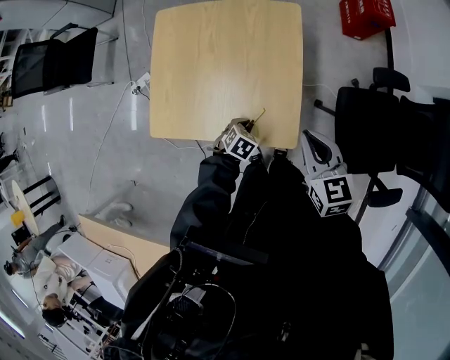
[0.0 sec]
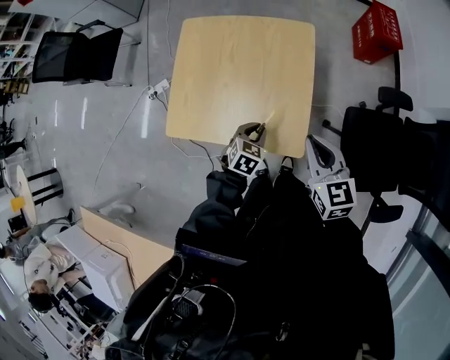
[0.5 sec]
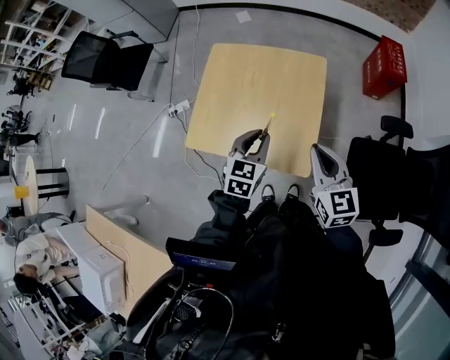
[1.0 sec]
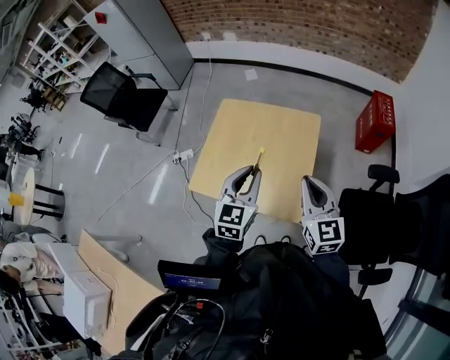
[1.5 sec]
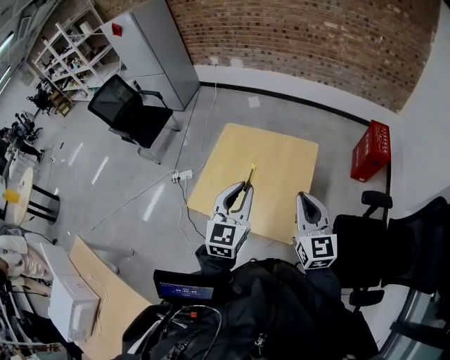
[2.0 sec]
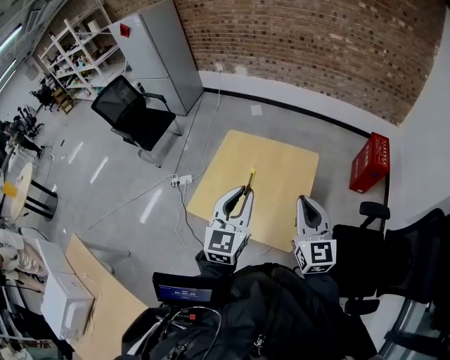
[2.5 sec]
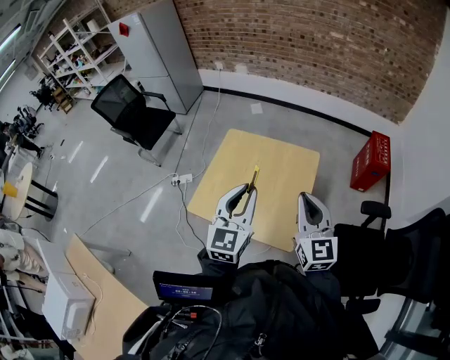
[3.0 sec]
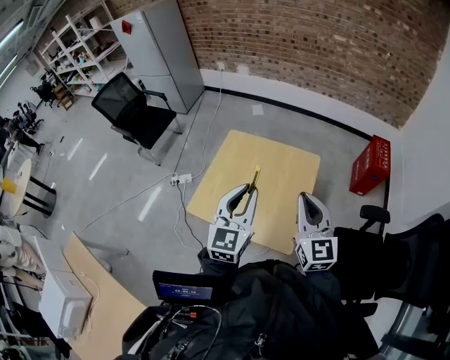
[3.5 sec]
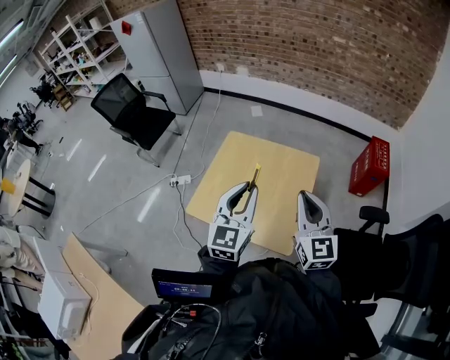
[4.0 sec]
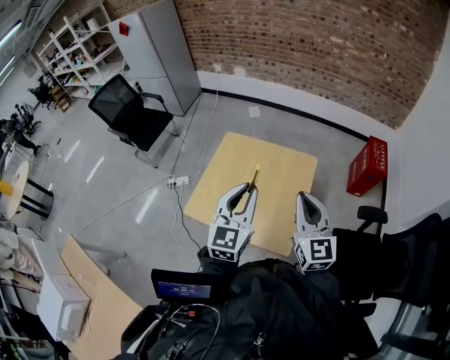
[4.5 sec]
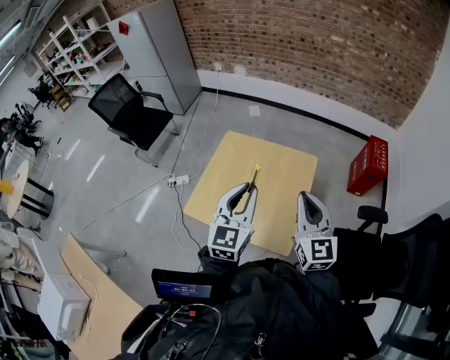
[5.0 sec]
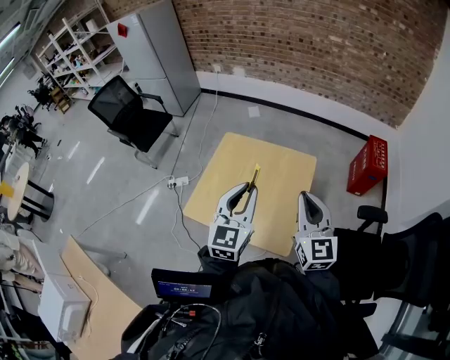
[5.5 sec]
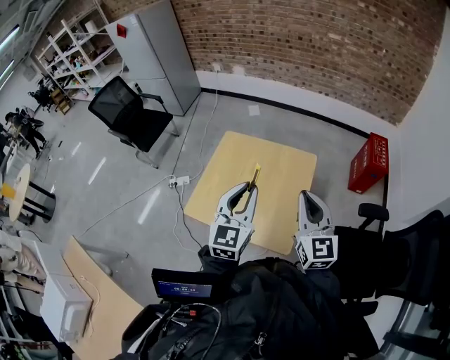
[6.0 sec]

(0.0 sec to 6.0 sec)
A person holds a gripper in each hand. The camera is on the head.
0.0 sec - 2.0 sec: The right gripper goes about 20 cm upward, and turns by about 30 degrees; the left gripper heads upward, covering about 50 cm, and angles its fingers upward, by roughly 60 degrees.
2.0 sec - 6.0 sec: The grippers move only a little.

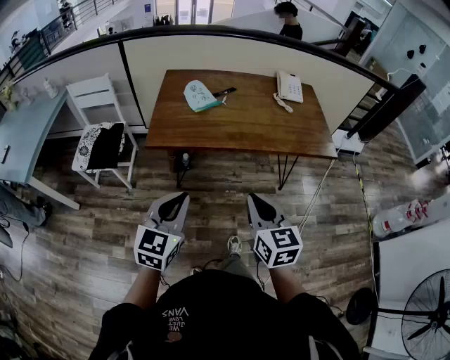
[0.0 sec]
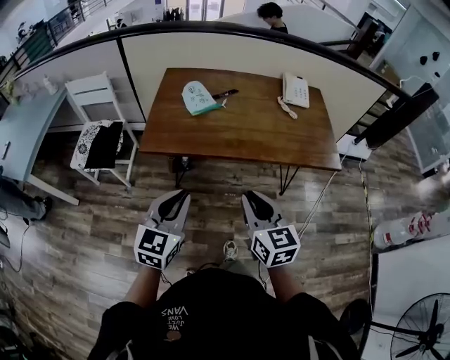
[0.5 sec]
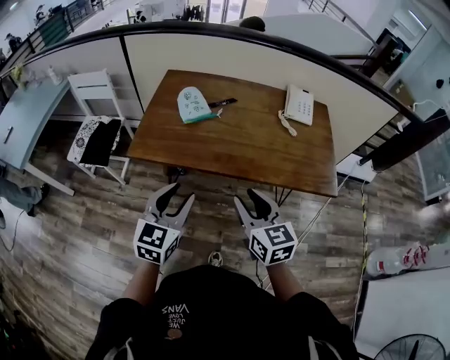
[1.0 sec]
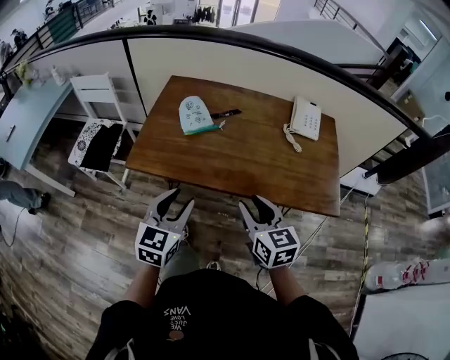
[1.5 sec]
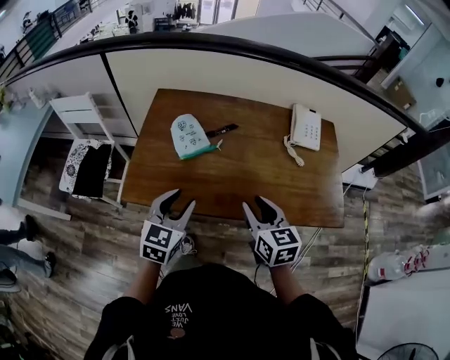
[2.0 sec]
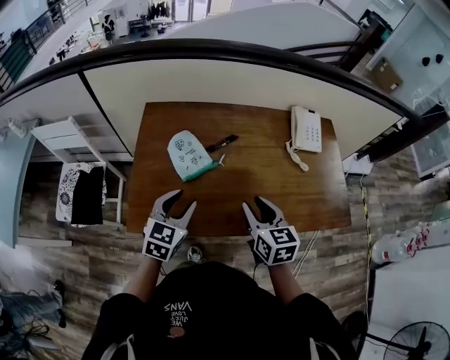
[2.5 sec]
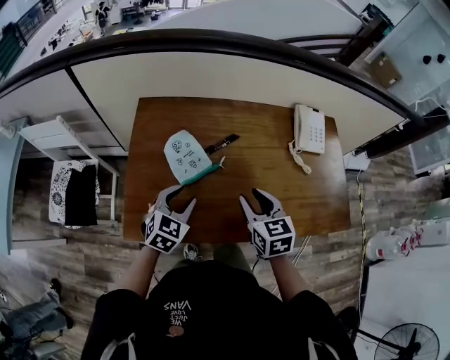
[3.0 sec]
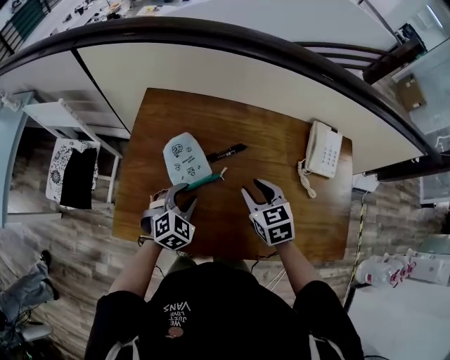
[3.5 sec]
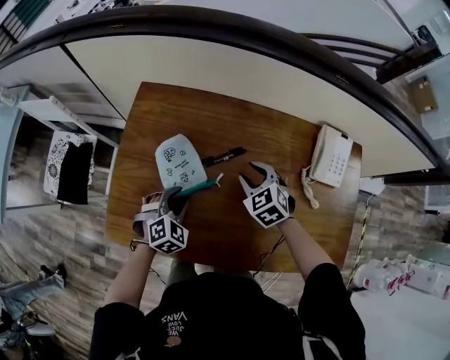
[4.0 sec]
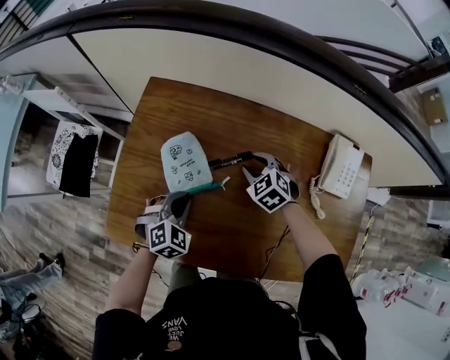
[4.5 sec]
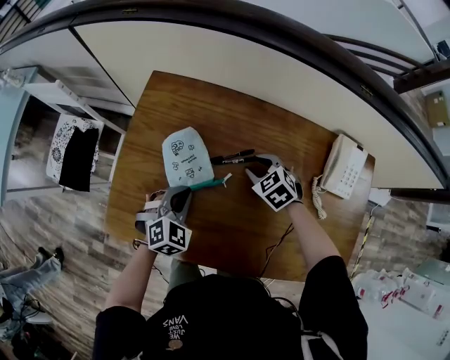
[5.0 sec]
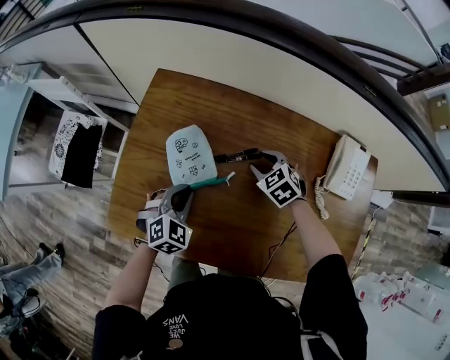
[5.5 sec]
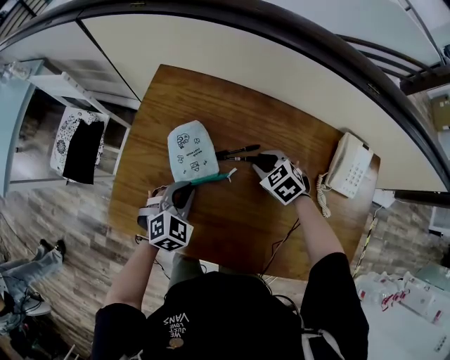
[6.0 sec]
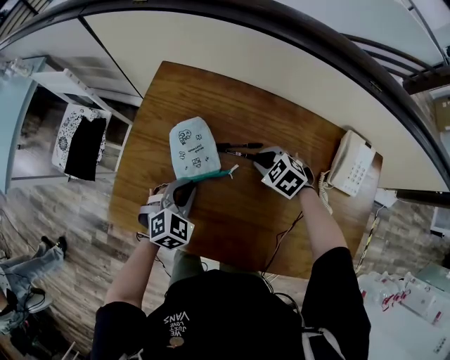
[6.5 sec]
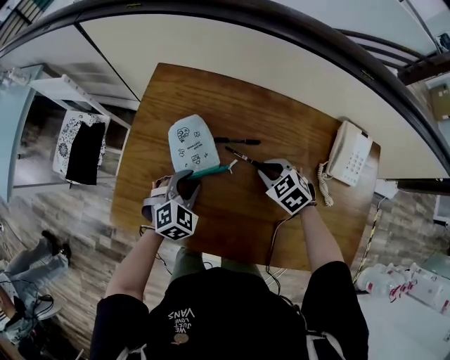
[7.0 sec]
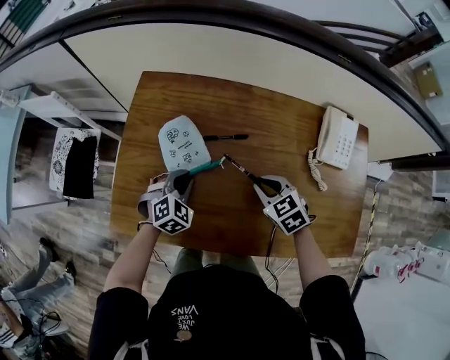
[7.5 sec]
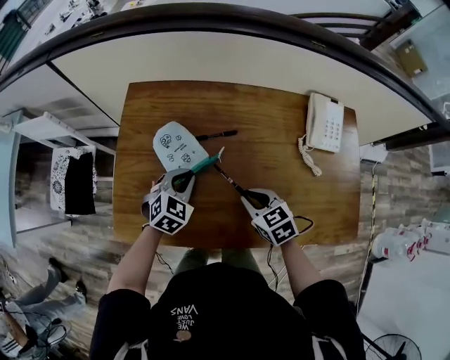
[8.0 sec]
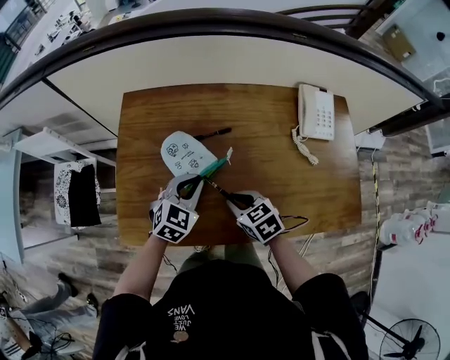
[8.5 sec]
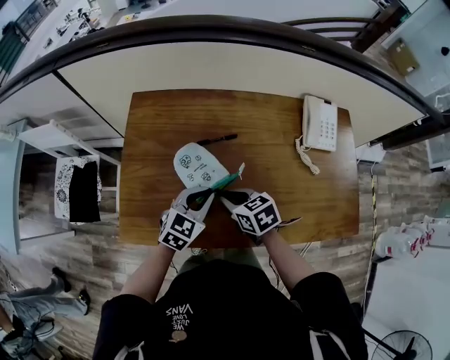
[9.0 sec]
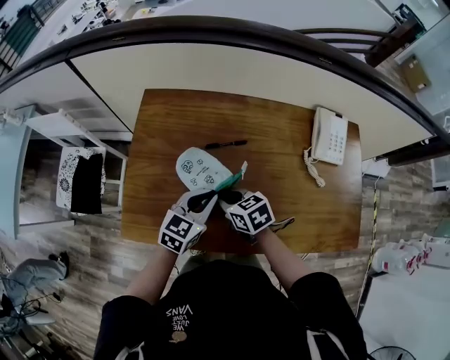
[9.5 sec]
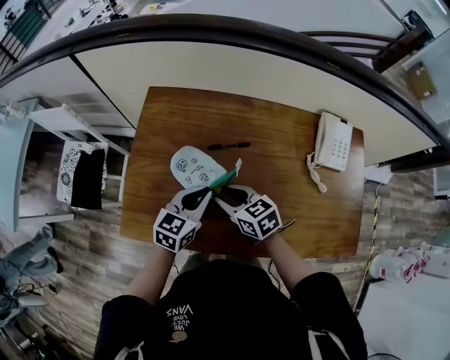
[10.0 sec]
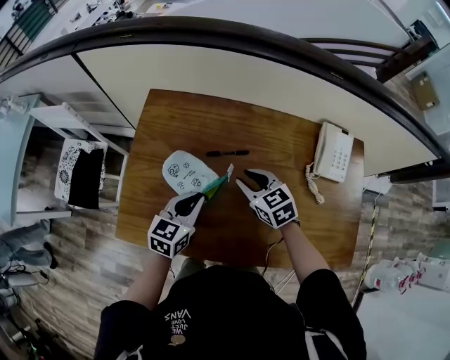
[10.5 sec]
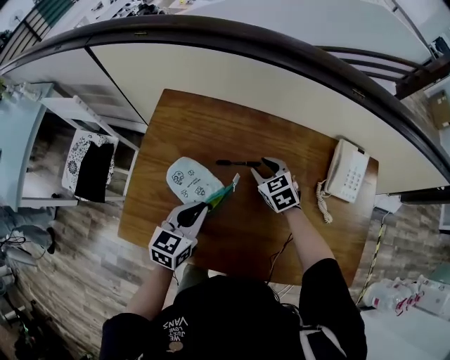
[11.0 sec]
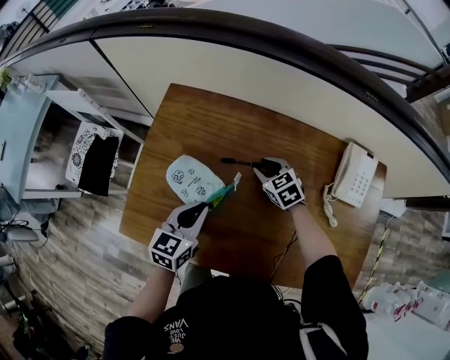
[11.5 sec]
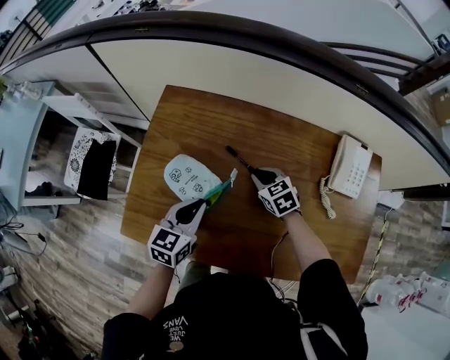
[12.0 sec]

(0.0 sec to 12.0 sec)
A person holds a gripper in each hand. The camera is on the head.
0.0 sec - 2.0 sec: Both grippers travel together forward, roughly 30 cm. The left gripper opens its fingers. The right gripper opens its fingers.
2.0 sec - 4.0 sec: The two grippers go about 30 cm forward and downward. The left gripper rotates about 40 degrees, while the right gripper turns by approximately 50 degrees.
4.0 sec - 6.0 sec: The right gripper goes about 5 cm downward; the left gripper closes up.
6.0 sec - 8.0 sec: The left gripper opens and closes again. The right gripper moves backward, roughly 15 cm, and turns by some 30 degrees.
8.0 sec - 10.0 sec: The left gripper goes roughly 5 cm upward, and changes its angle by roughly 40 degrees, while the right gripper moves to the left, about 10 cm.
10.0 sec - 12.0 sec: The right gripper is displaced forward, to the right and downward by some 15 cm, and turns by approximately 20 degrees.

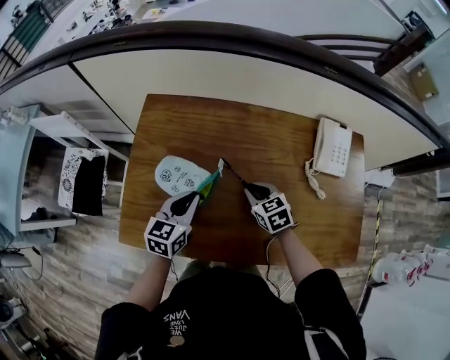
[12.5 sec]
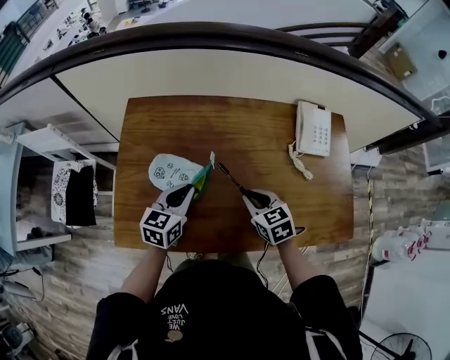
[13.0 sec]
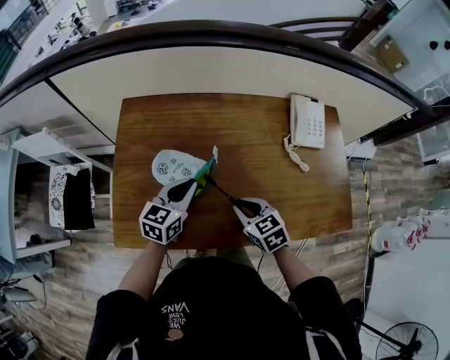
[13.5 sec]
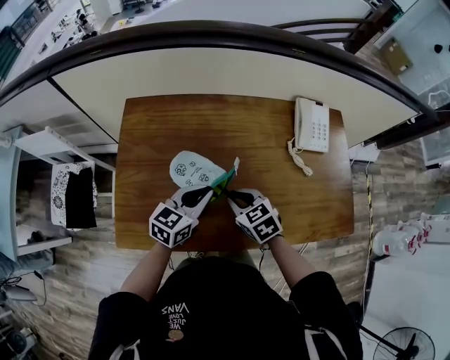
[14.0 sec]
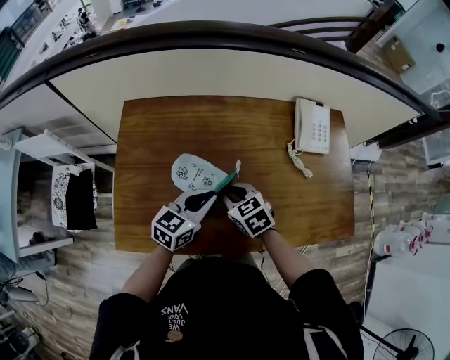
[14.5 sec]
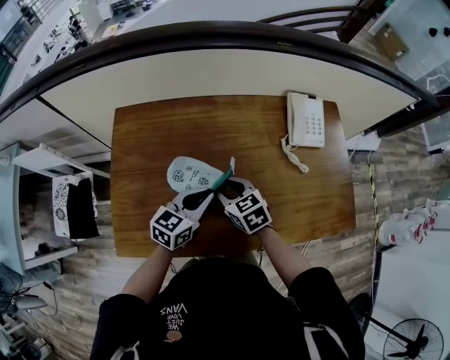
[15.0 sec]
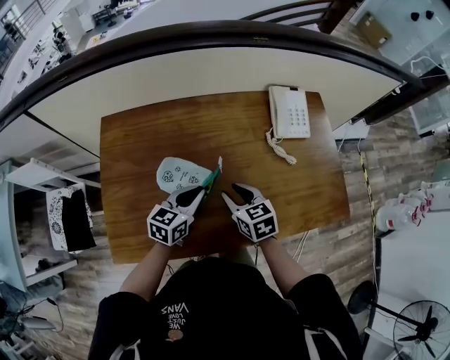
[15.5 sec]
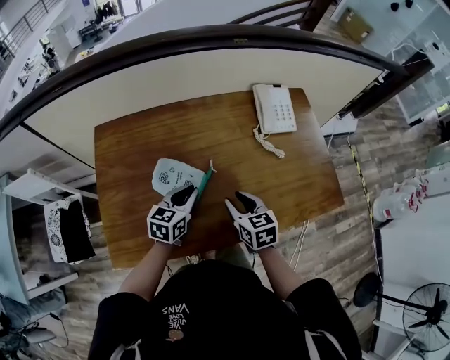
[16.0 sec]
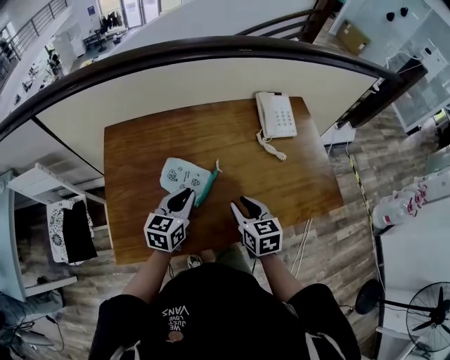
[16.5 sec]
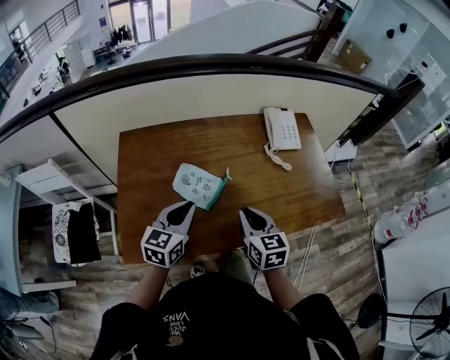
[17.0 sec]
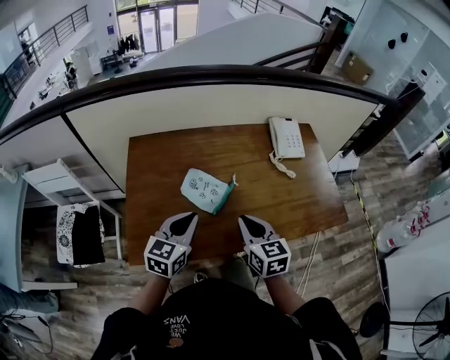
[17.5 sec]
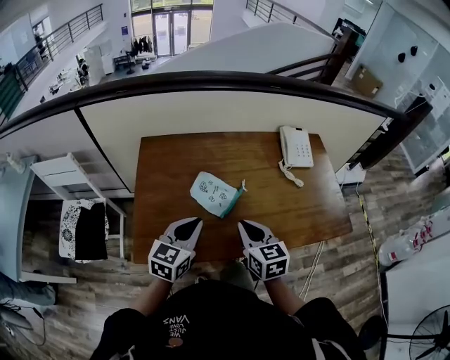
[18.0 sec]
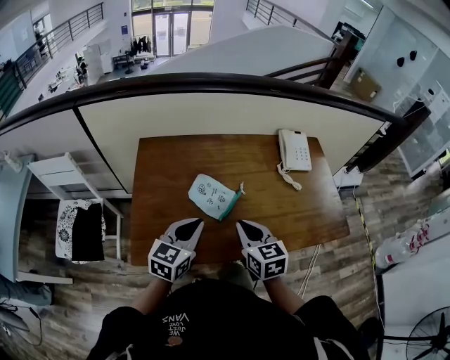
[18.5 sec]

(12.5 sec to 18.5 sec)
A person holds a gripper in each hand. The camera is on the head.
12.5 sec - 14.5 sec: The left gripper heads to the right, covering some 10 cm, and turns by roughly 20 degrees.
14.5 sec - 16.5 sec: The right gripper moves to the right and backward, about 10 cm, and turns by approximately 40 degrees.
16.5 sec - 18.5 sec: The left gripper heads backward, upward and to the left, covering some 10 cm, while the right gripper is displaced to the left, upward and backward by roughly 10 cm, and closes.

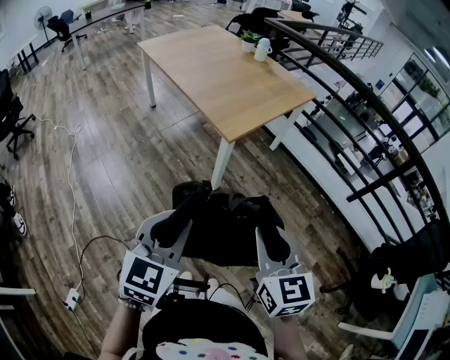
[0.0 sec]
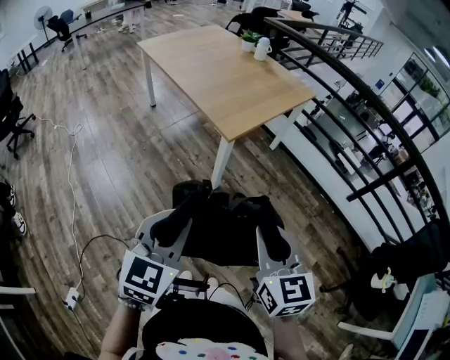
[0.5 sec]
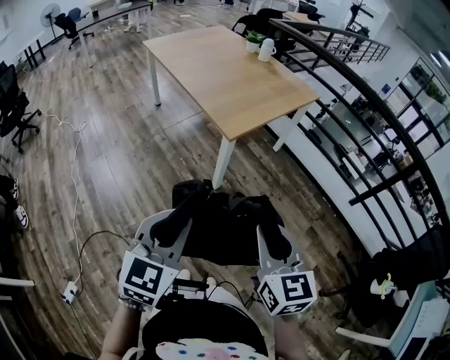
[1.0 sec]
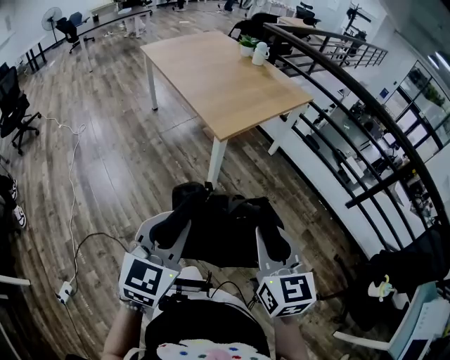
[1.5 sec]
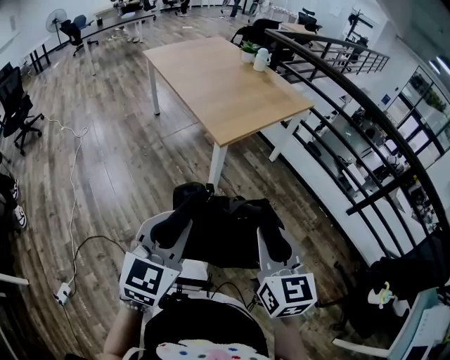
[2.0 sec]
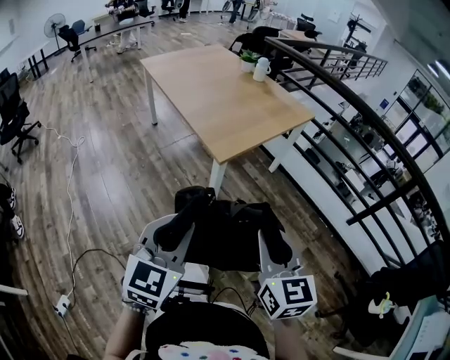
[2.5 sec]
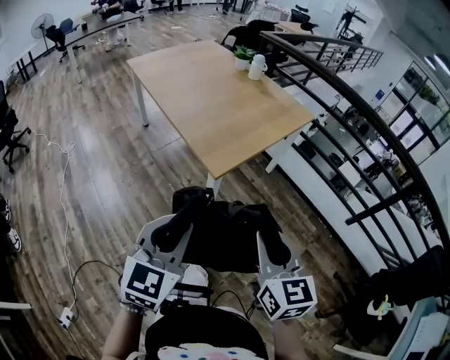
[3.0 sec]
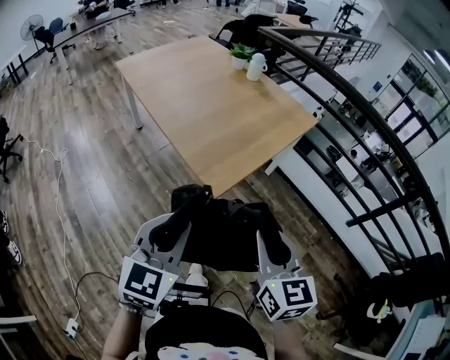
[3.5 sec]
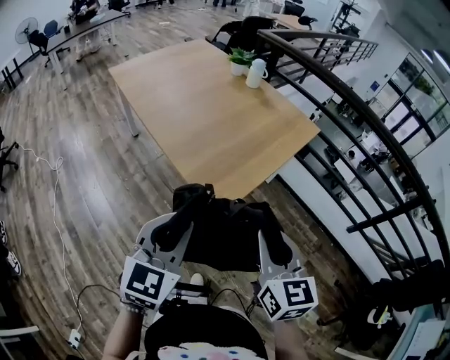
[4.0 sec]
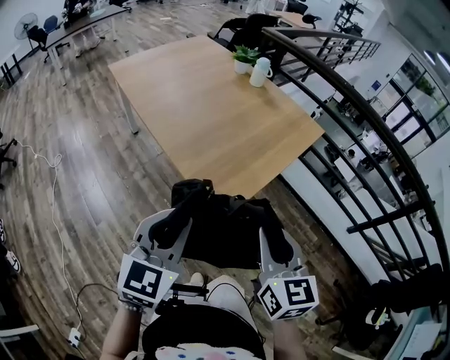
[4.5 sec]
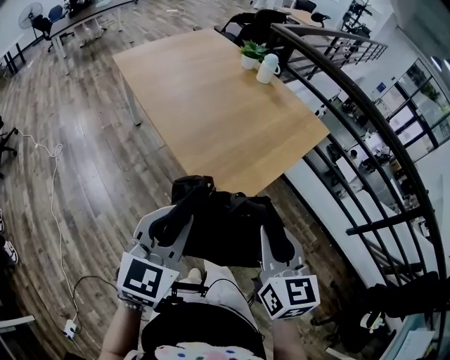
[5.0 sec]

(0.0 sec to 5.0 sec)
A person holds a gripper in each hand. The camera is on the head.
0.0 sec - 2.5 sec: Both grippers travel together to the right and forward, some 10 cm.
2.5 sec - 5.0 sec: The grippers both shift forward by about 30 cm.
